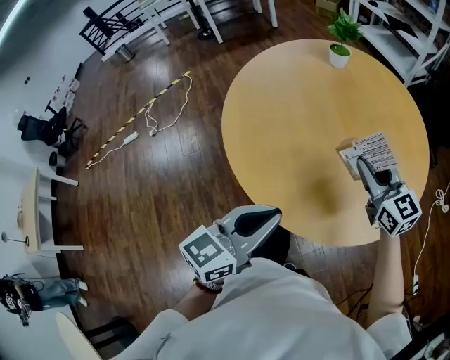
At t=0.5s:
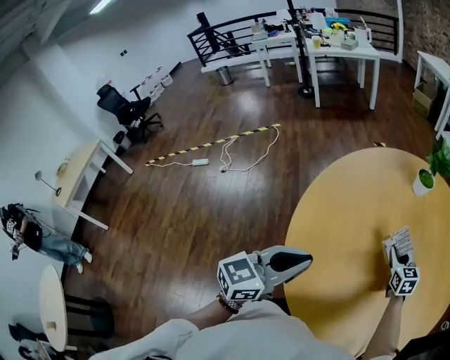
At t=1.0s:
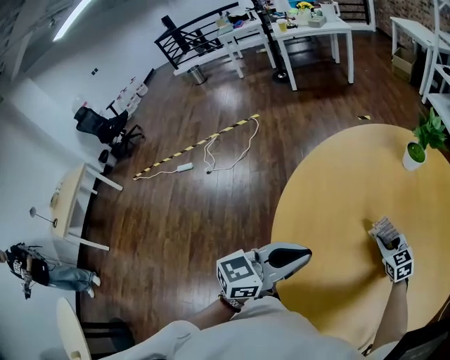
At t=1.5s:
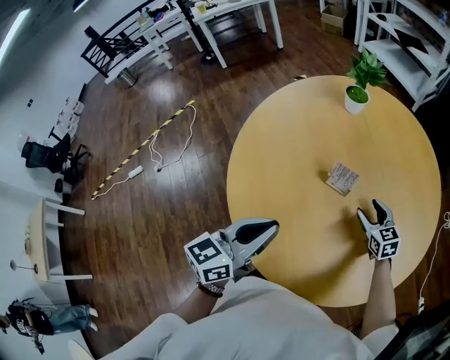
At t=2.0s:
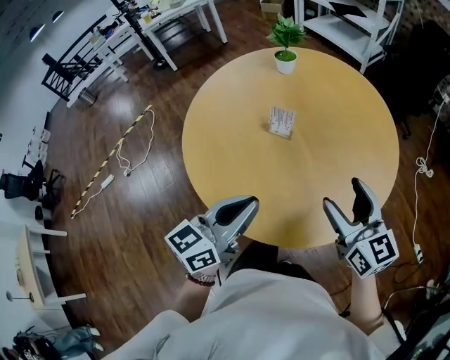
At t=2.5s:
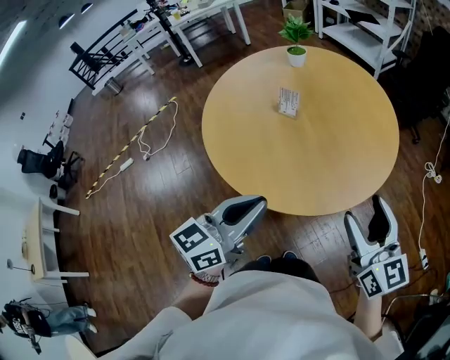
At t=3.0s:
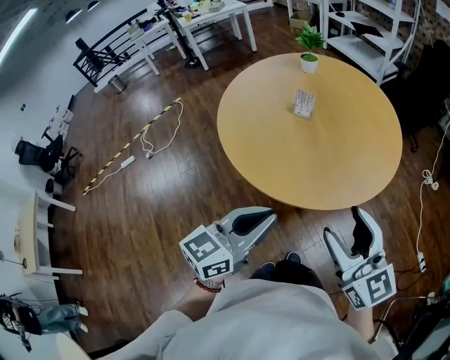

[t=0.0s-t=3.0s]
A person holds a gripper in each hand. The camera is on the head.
t=0.0s to t=1.5s: The left gripper moves forward, approximately 20 cm. The right gripper moves downward and forward, some 25 cm, turns by about 30 degrees, and opens its fingers.
t=1.5s to t=3.0s: The right gripper goes about 60 cm backward and upward, and tips its fingers upward by about 30 degrees; the left gripper shifts some 35 cm backward.

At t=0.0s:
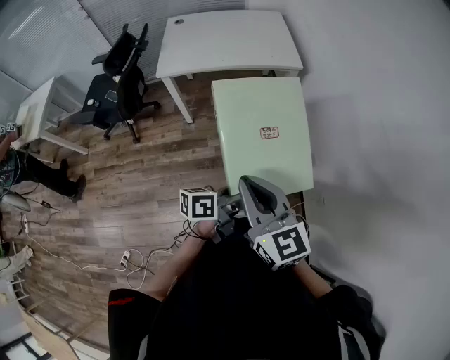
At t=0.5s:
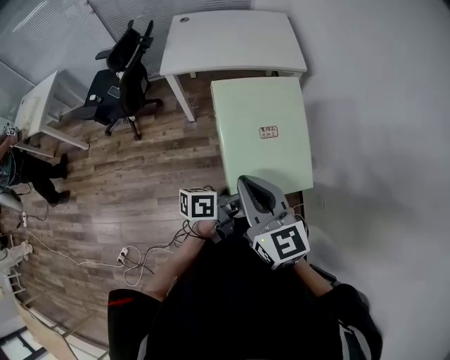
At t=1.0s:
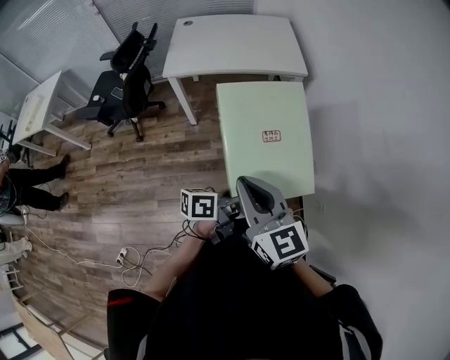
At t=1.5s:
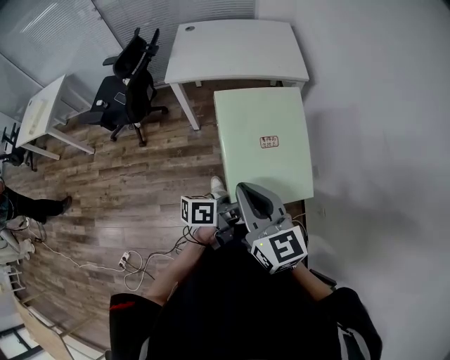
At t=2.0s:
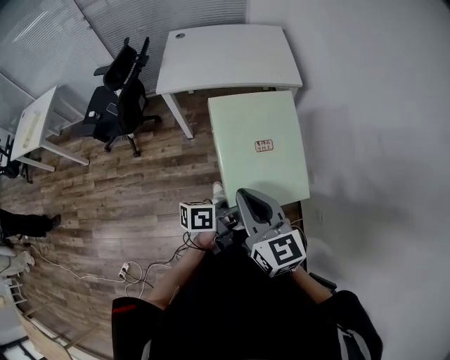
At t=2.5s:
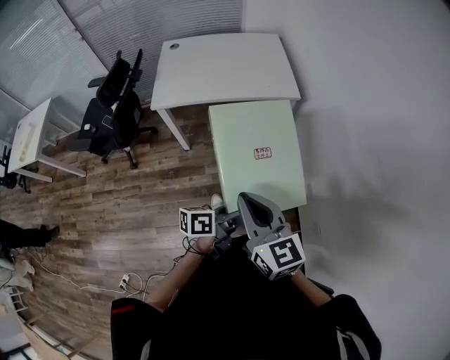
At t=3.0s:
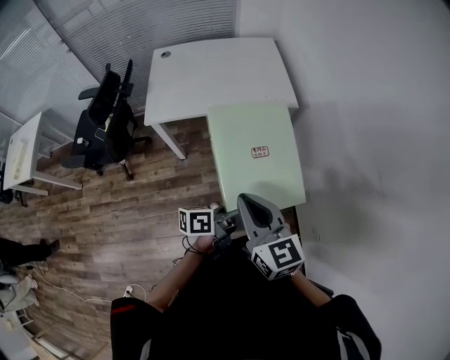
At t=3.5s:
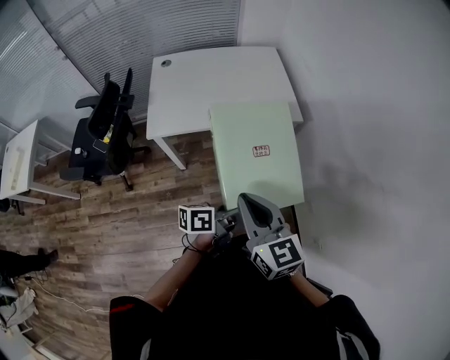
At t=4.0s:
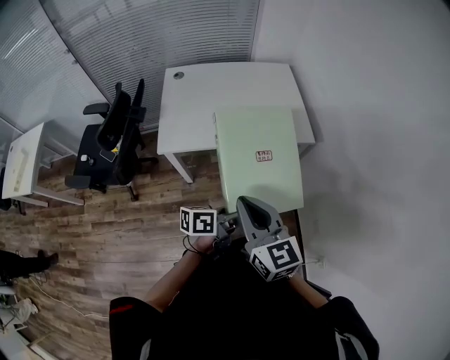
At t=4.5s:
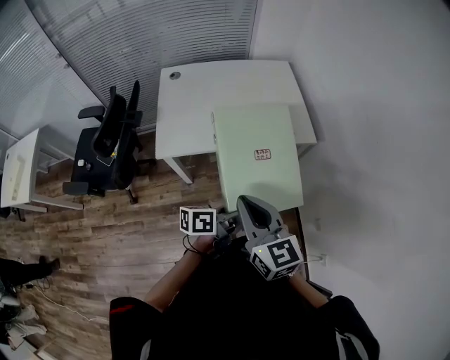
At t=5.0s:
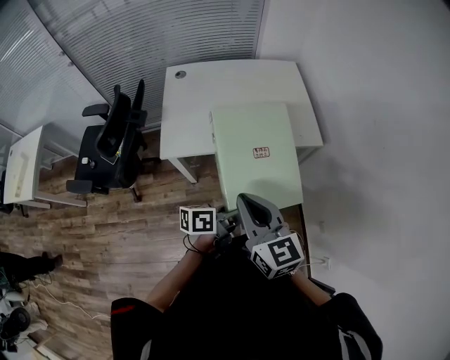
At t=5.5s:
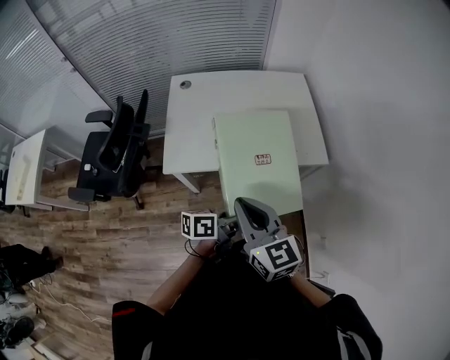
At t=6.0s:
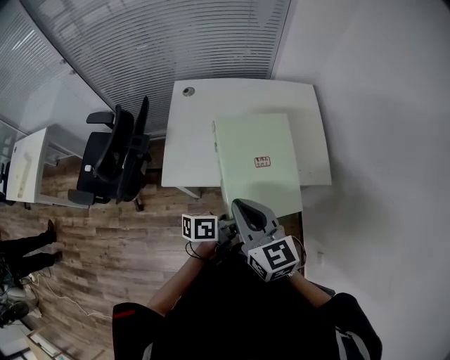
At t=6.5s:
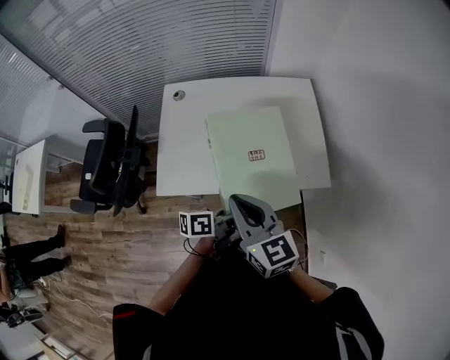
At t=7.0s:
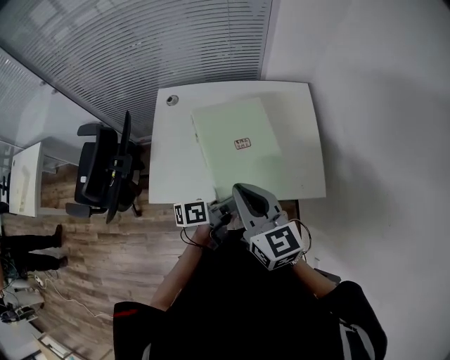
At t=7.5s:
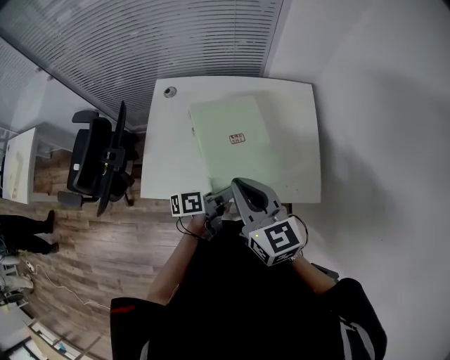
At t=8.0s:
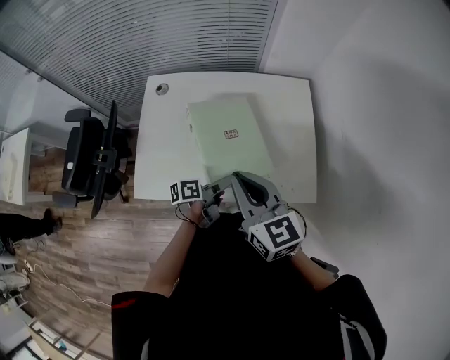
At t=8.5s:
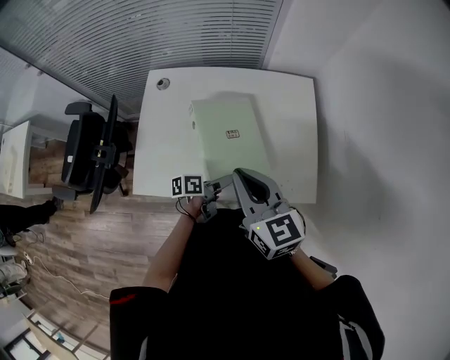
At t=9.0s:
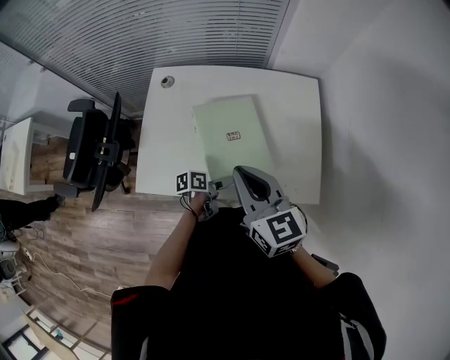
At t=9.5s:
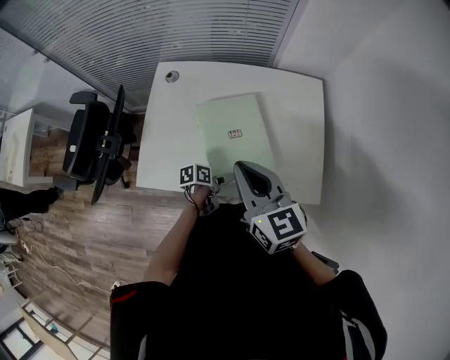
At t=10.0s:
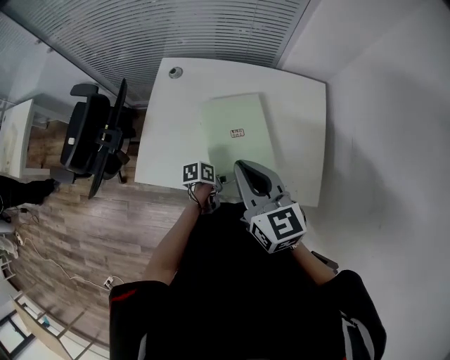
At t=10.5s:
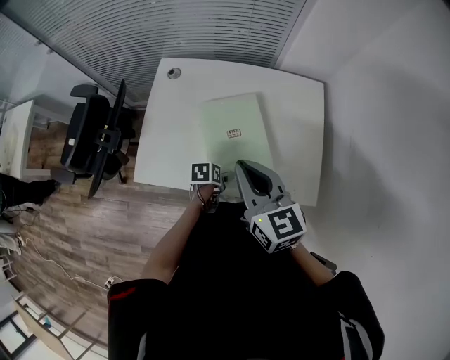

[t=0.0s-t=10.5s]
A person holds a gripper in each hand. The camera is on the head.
t=0.0s to t=2.0s: The grippers stay close to where they were, moving slightly.
t=2.0s to t=4.0s: Both grippers travel together forward and to the left, approximately 30 cm.
t=4.0s to t=6.5s: Both grippers move forward, about 25 cm.
t=6.5s to t=8.5s: The right gripper shifts some 15 cm forward; the left gripper is displaced downward and forward by about 20 cm.
t=8.5s to t=10.5s: The left gripper is displaced downward by roughly 5 cm, and points its fingers some 30 degrees further downward.

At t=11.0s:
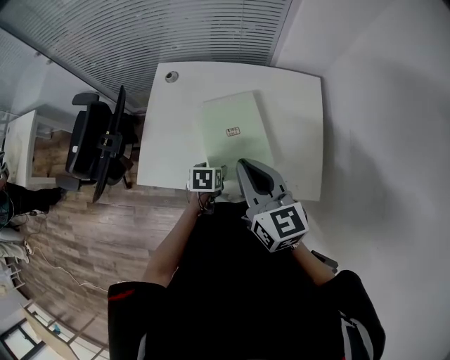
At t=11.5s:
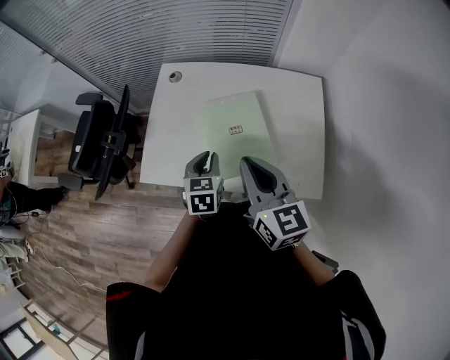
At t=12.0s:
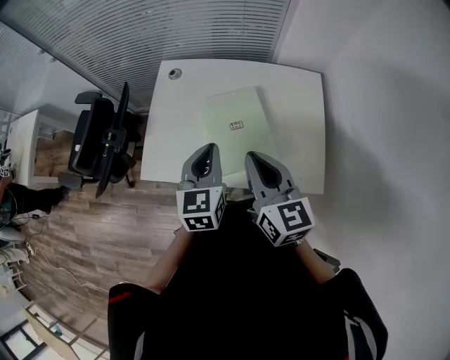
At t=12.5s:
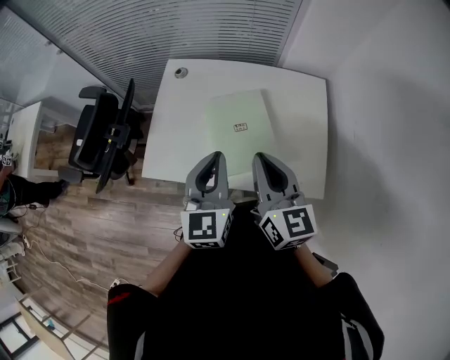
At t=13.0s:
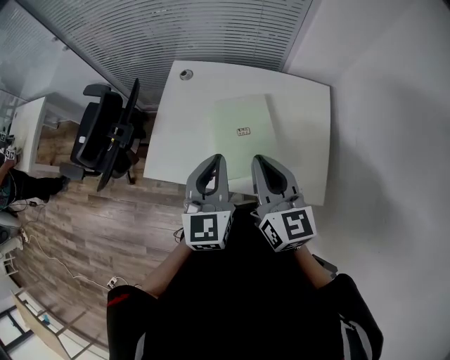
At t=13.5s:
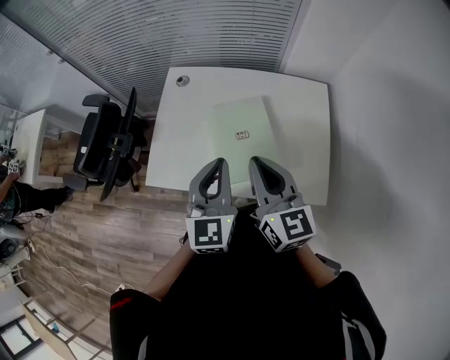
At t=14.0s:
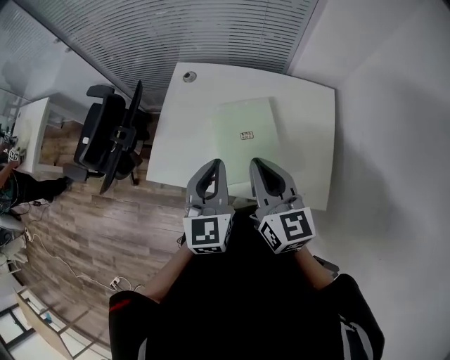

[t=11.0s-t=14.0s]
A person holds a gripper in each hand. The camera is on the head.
t=11.0s to t=12.5s: The left gripper goes approximately 30 cm upward, points its fingers approximately 50 degrees further upward, and closes its fingers.
t=12.5s to t=14.0s: The grippers stay close to where they were, moving slightly.

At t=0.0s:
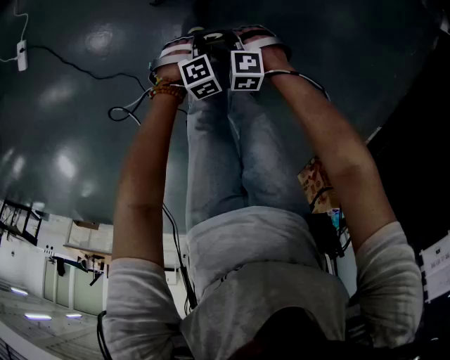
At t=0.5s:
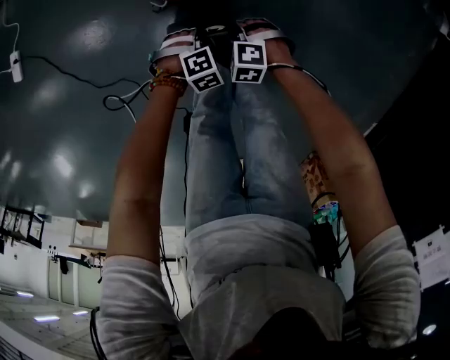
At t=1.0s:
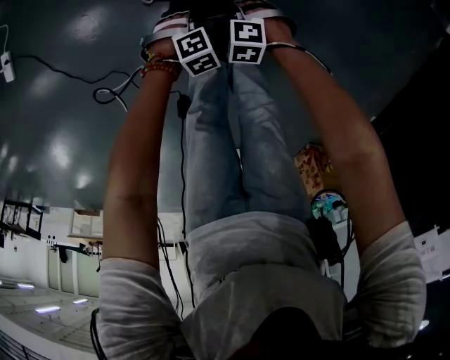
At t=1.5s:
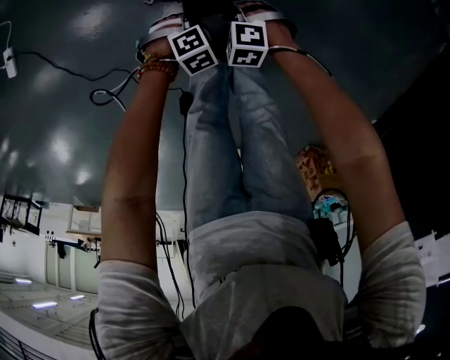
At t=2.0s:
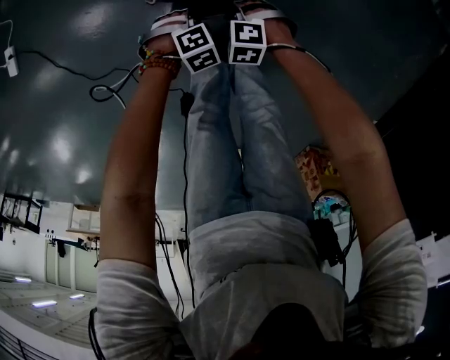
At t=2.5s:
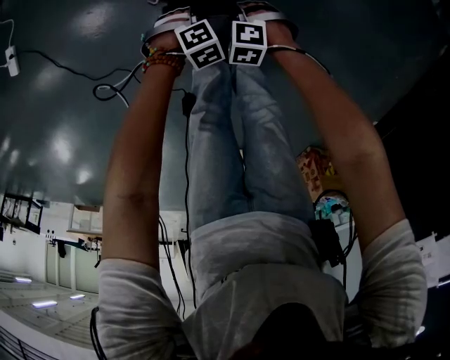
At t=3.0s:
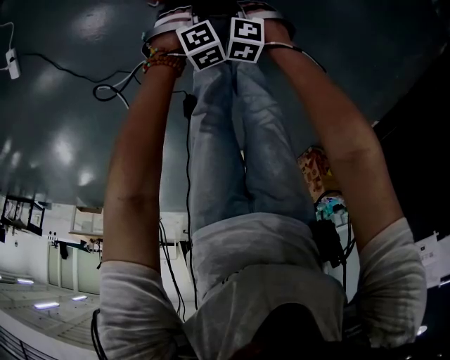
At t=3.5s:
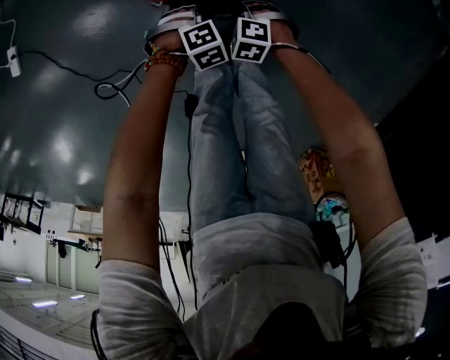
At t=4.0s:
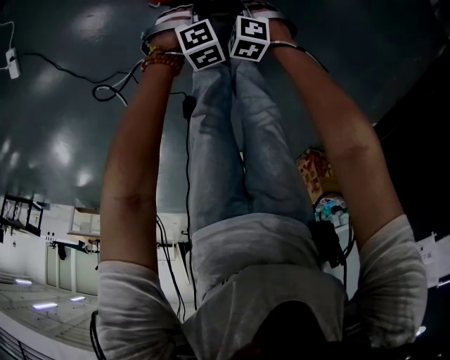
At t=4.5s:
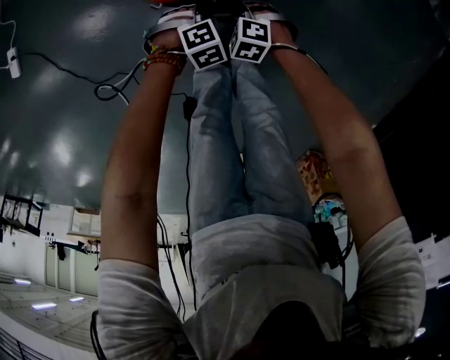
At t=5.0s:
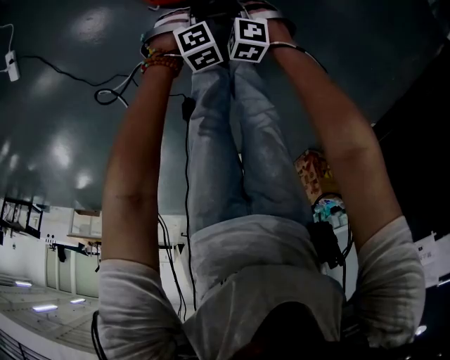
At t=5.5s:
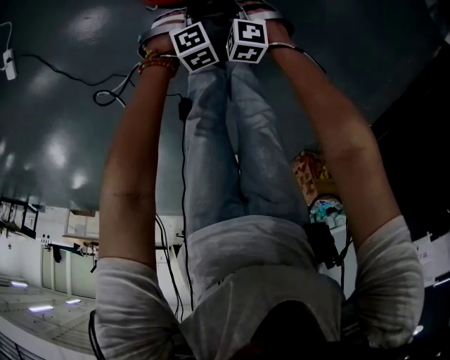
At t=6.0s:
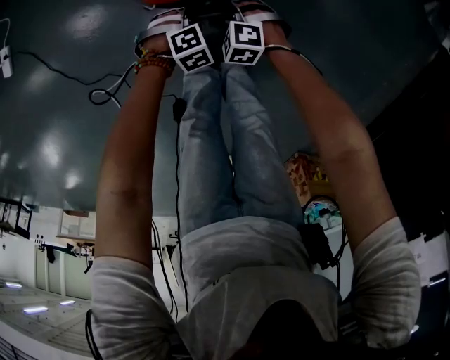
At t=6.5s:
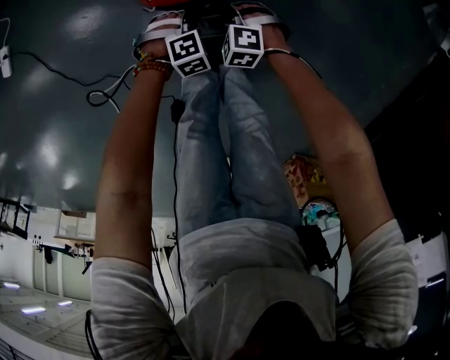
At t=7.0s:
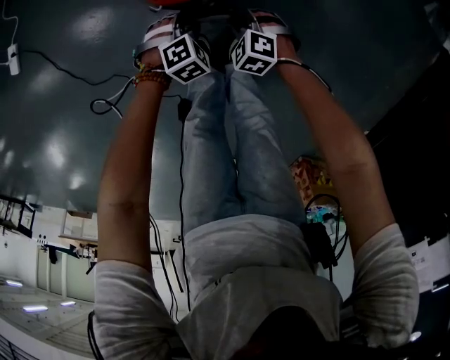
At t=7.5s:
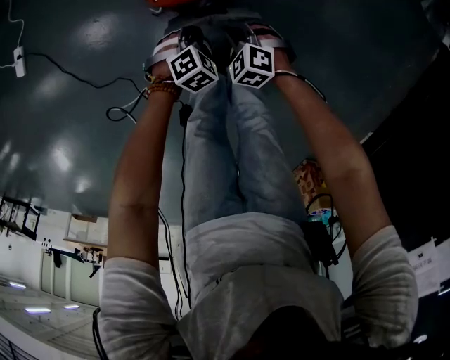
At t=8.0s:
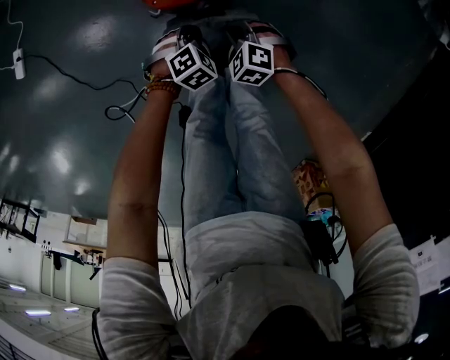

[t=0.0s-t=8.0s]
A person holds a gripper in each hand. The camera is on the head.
t=0.0s to t=2.0s: The right gripper shifts by about 15 cm.
t=6.0s to t=8.0s: The right gripper shifts roughly 5 cm upward.

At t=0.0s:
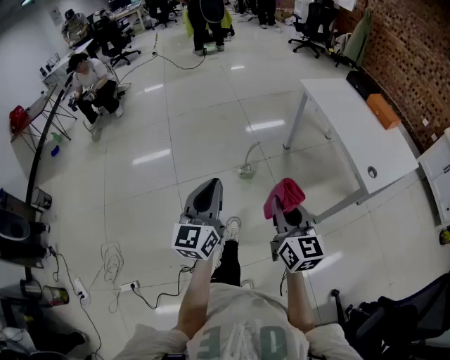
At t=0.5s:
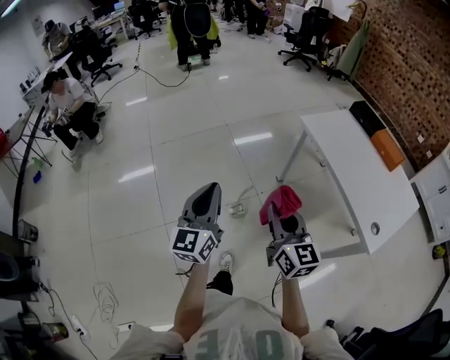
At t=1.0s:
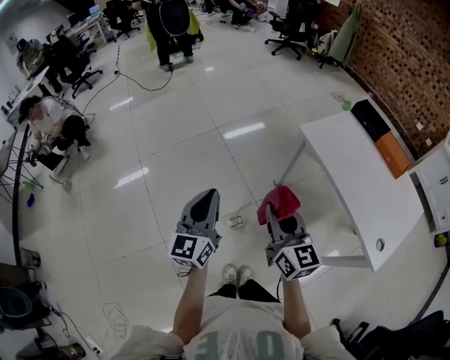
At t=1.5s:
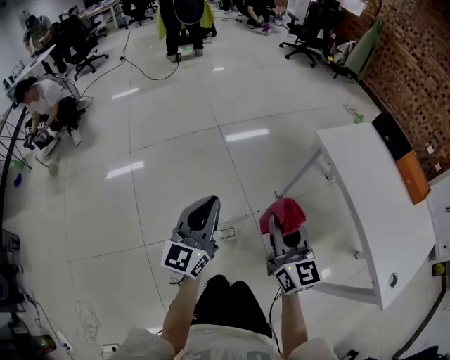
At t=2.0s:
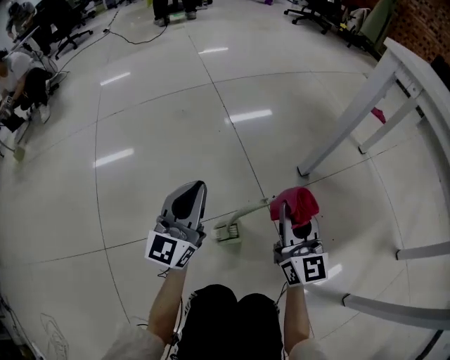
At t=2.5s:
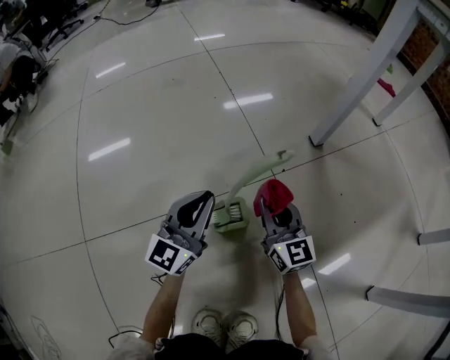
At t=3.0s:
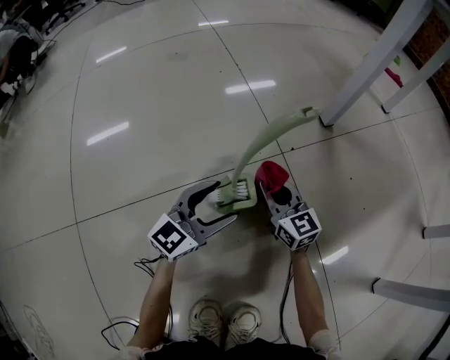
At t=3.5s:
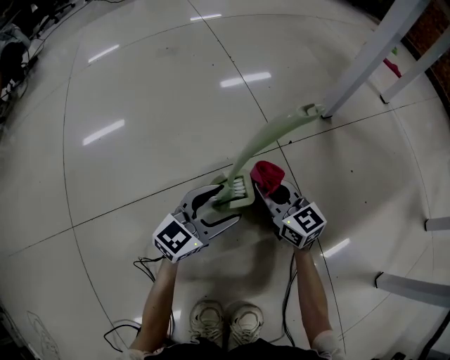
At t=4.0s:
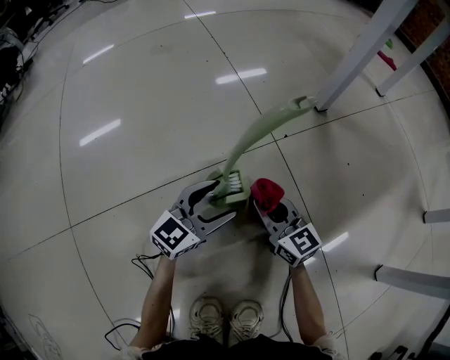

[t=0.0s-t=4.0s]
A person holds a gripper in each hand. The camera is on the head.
t=0.0s to t=2.0s: Both grippers are carried forward, some 60 cm. The grippers both shift downward by about 60 cm.
t=2.0s to t=4.0s: The two grippers go some 35 cm downward. The left gripper turns by about 40 degrees, and opens up. Meanwhile the right gripper changes its angle by approximately 30 degrees.
